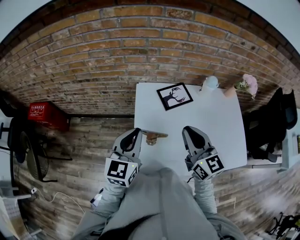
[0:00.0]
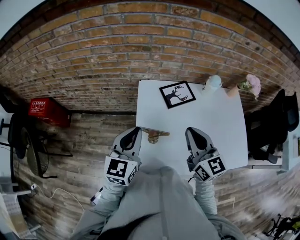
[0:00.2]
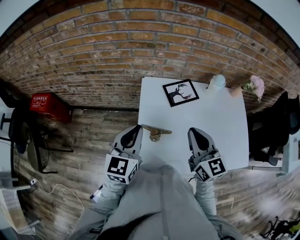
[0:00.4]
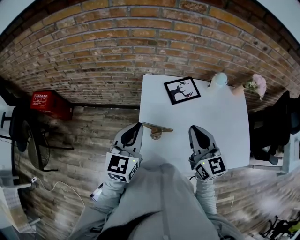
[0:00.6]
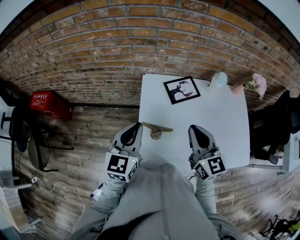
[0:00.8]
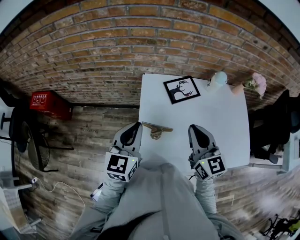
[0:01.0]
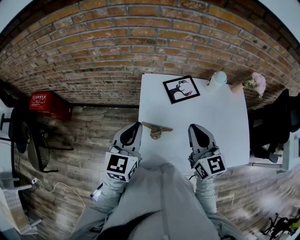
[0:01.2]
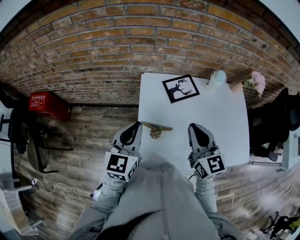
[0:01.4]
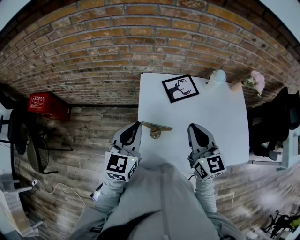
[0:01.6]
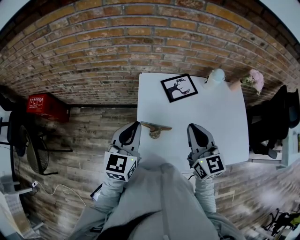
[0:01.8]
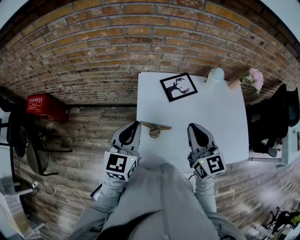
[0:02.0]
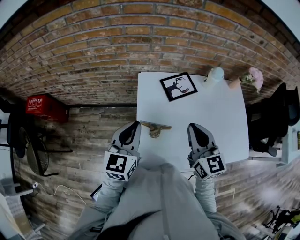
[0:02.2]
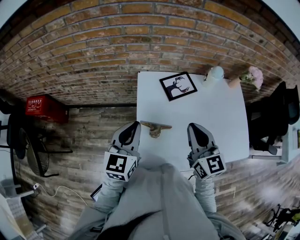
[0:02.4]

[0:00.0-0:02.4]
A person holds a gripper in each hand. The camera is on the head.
0:00.0 to 0:01.2: There are only small adjustments of the grippers.
0:01.2 to 0:02.4: Both grippers stay put.

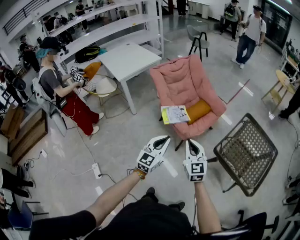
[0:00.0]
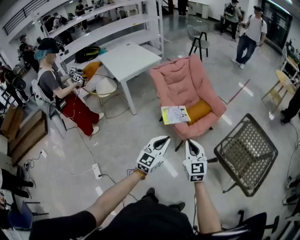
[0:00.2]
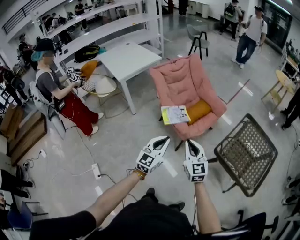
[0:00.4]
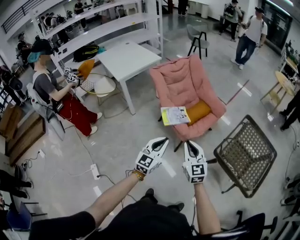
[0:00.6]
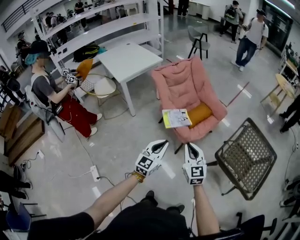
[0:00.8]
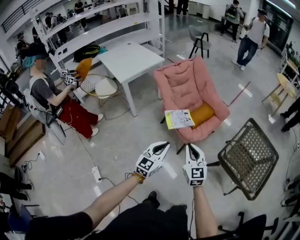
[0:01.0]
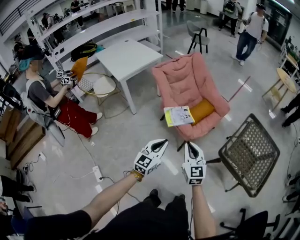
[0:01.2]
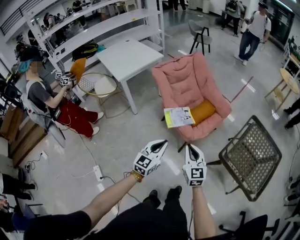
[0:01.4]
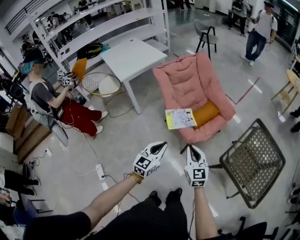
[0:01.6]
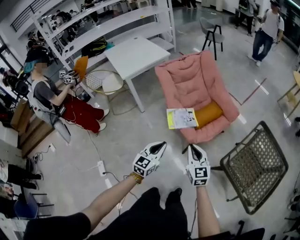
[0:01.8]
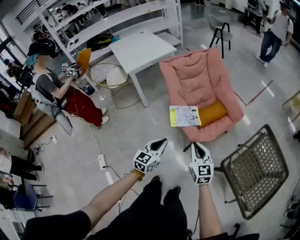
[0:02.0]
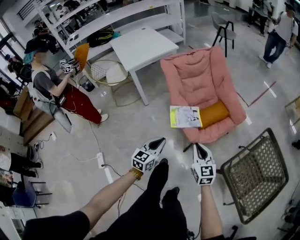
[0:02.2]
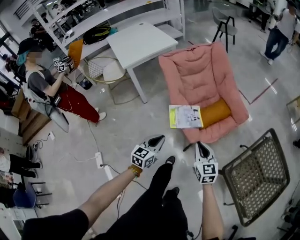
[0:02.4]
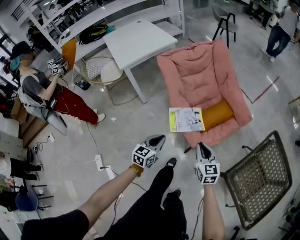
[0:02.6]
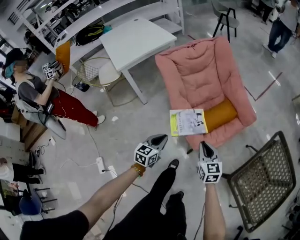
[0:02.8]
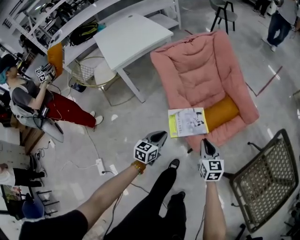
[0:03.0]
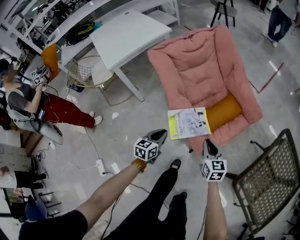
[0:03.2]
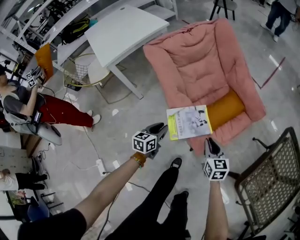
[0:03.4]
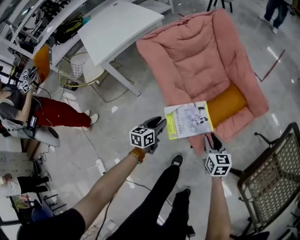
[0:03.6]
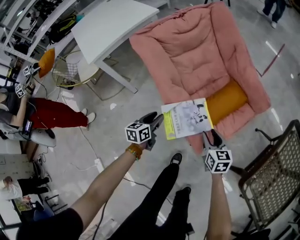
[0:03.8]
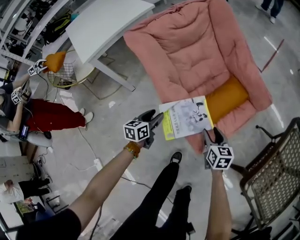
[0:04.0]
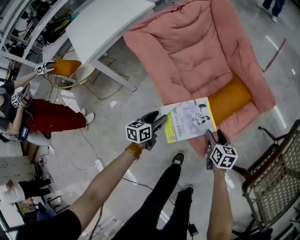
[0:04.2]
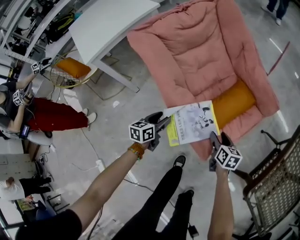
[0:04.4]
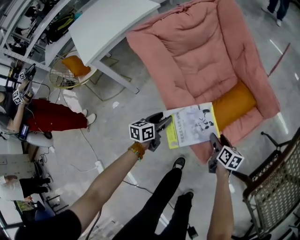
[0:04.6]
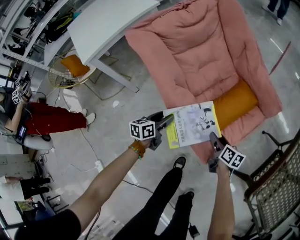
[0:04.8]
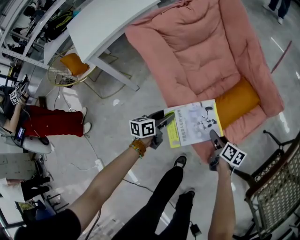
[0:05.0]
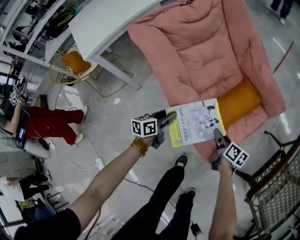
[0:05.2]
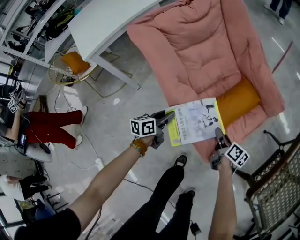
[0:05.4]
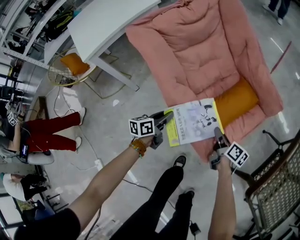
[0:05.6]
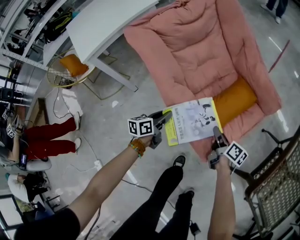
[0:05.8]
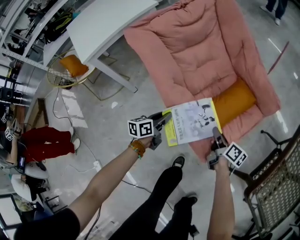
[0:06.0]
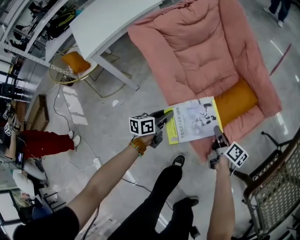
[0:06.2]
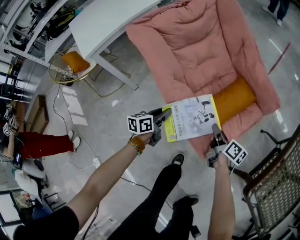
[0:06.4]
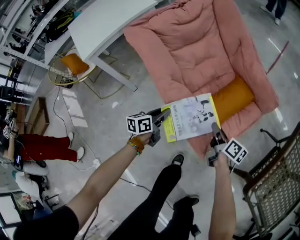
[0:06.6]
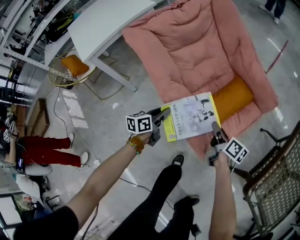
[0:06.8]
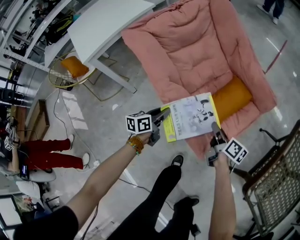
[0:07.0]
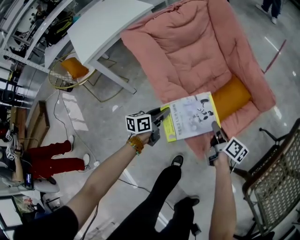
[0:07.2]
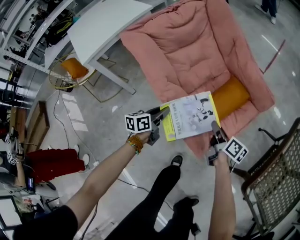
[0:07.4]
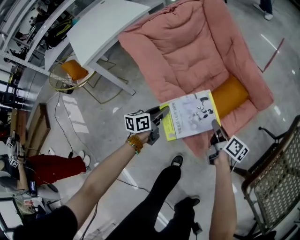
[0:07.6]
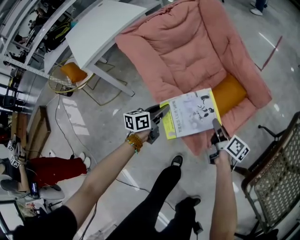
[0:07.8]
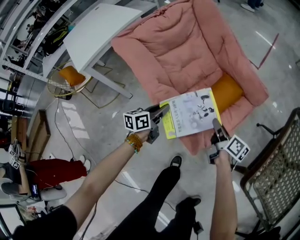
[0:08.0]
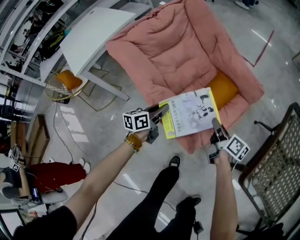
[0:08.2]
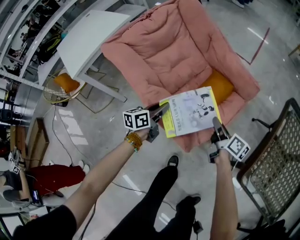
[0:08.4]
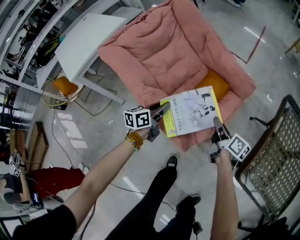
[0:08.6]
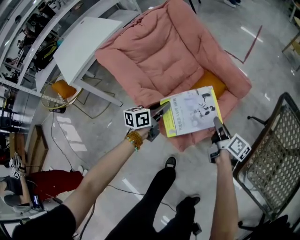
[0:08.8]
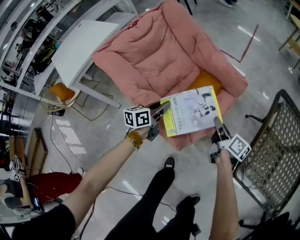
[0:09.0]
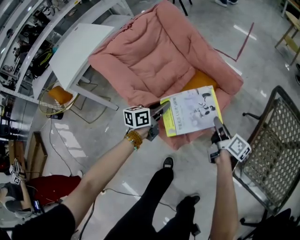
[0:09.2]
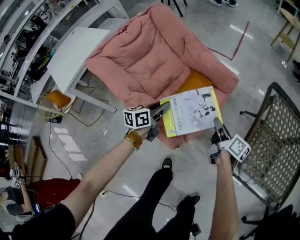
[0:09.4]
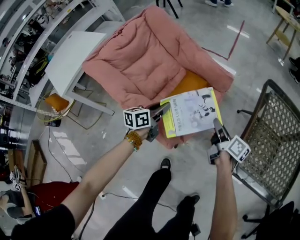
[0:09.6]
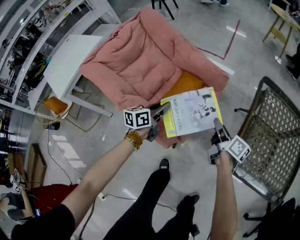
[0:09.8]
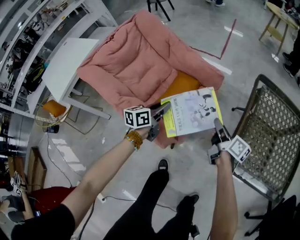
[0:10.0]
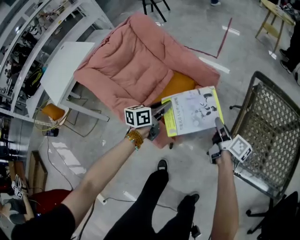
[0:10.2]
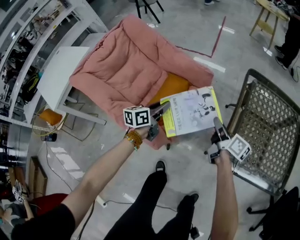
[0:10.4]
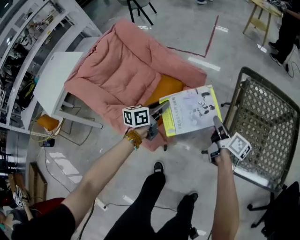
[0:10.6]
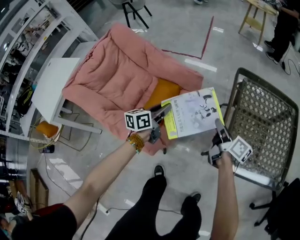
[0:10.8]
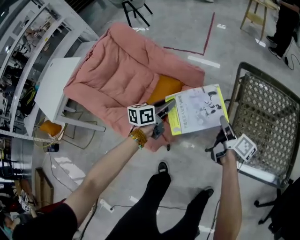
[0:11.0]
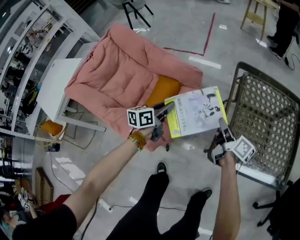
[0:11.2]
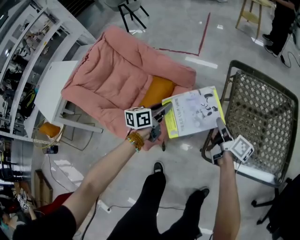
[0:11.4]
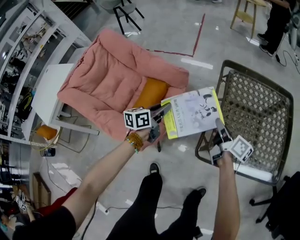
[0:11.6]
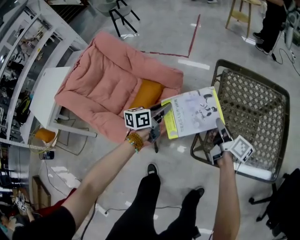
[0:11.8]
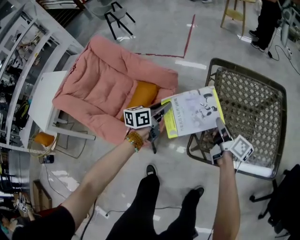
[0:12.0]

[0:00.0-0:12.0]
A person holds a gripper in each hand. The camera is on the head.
0:00.0 to 0:01.6: Both grippers travel together forward and downward, about 10 cm.
0:01.6 to 0:03.0: Both grippers travel together forward and downward, roughly 35 cm. The left gripper changes its angle by some 20 degrees.
0:03.0 to 0:04.4: Both grippers travel together downward and forward, some 25 cm. The left gripper opens; the right gripper swivels approximately 30 degrees, and opens up.
0:04.4 to 0:06.0: The right gripper rotates approximately 30 degrees, and closes up. Meanwhile the left gripper closes up.
0:06.0 to 0:07.6: The right gripper moves approximately 5 cm.
0:07.6 to 0:09.0: The grippers both shift to the right and upward by about 15 cm.
0:09.0 to 0:10.4: The right gripper is displaced to the right and upward by about 15 cm. Meanwhile the left gripper heads to the right, covering approximately 15 cm.
0:10.4 to 0:12.0: The grippers both shift to the right by about 25 cm.

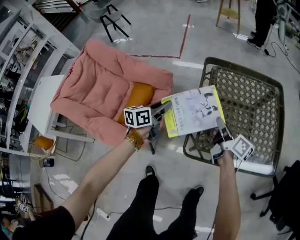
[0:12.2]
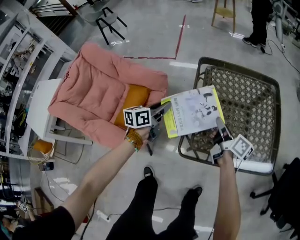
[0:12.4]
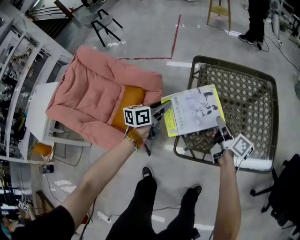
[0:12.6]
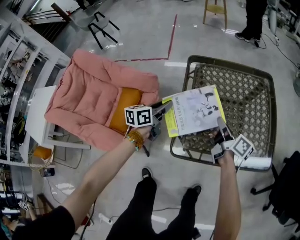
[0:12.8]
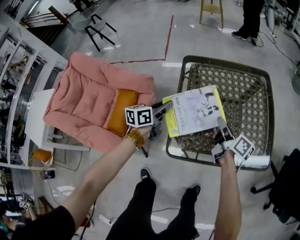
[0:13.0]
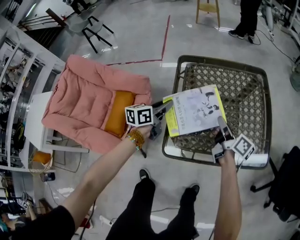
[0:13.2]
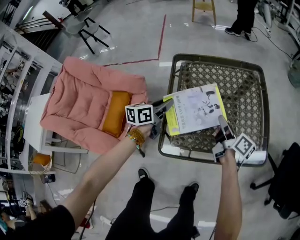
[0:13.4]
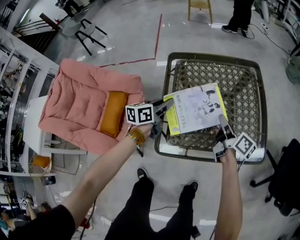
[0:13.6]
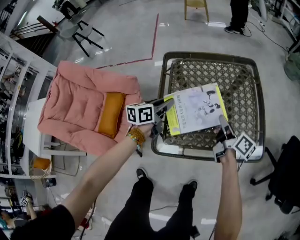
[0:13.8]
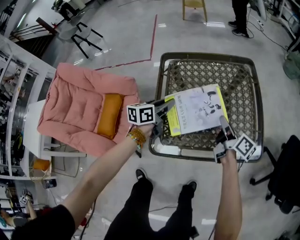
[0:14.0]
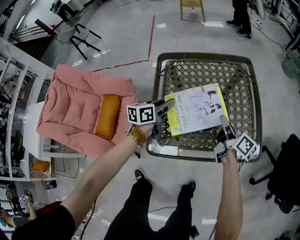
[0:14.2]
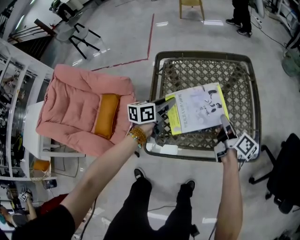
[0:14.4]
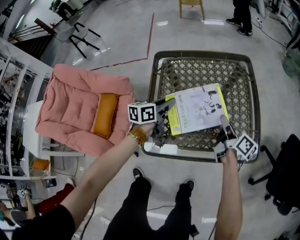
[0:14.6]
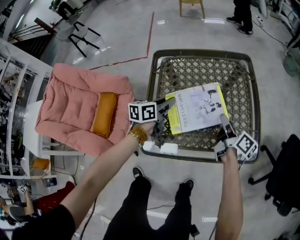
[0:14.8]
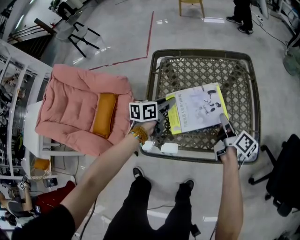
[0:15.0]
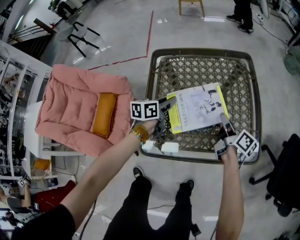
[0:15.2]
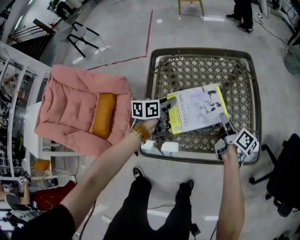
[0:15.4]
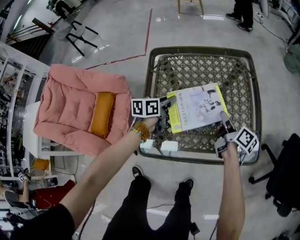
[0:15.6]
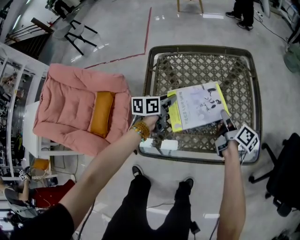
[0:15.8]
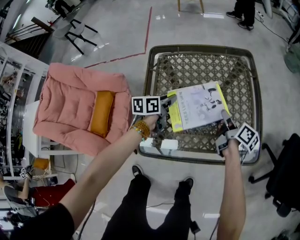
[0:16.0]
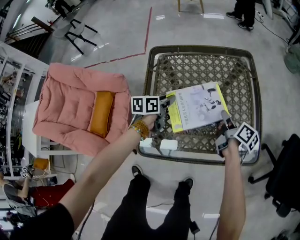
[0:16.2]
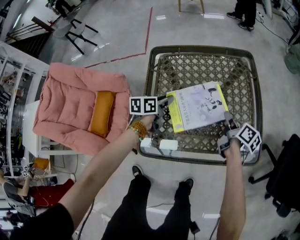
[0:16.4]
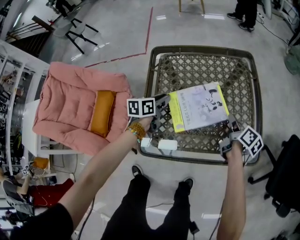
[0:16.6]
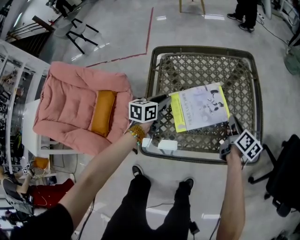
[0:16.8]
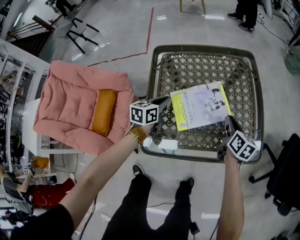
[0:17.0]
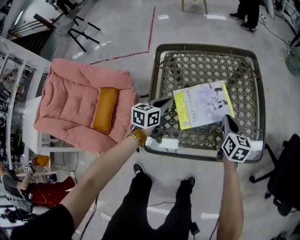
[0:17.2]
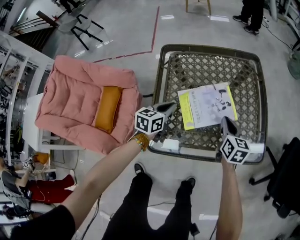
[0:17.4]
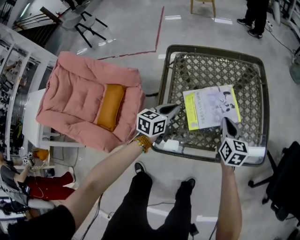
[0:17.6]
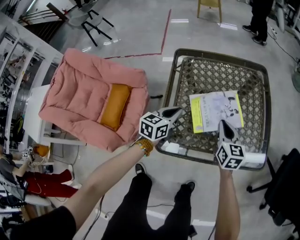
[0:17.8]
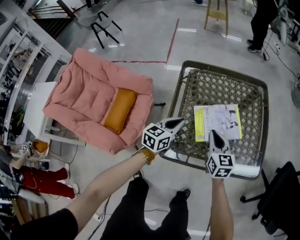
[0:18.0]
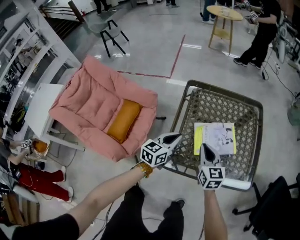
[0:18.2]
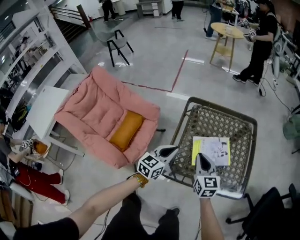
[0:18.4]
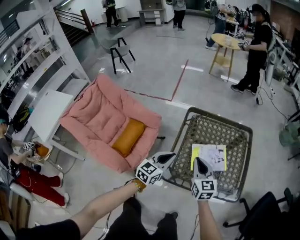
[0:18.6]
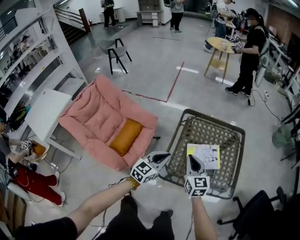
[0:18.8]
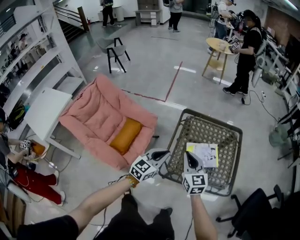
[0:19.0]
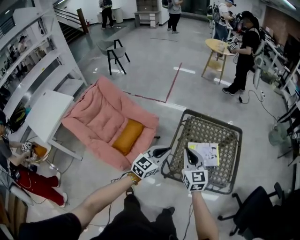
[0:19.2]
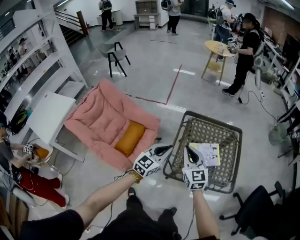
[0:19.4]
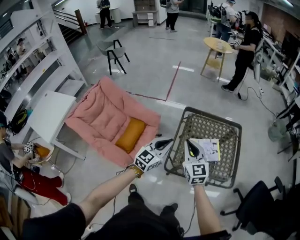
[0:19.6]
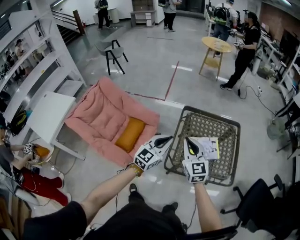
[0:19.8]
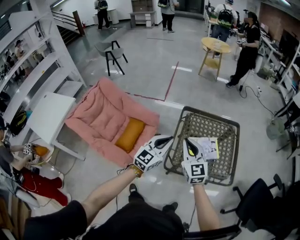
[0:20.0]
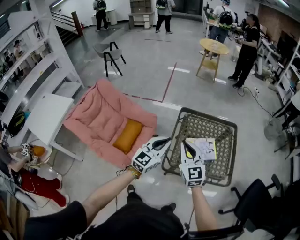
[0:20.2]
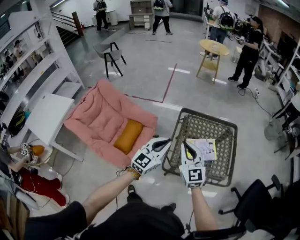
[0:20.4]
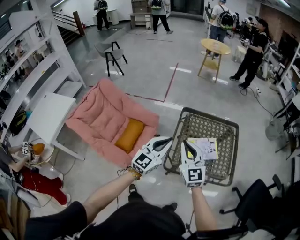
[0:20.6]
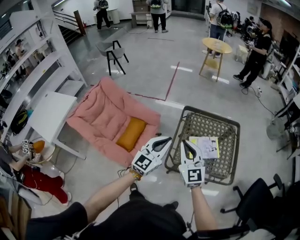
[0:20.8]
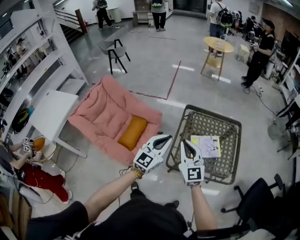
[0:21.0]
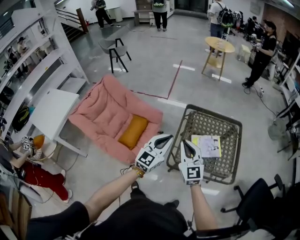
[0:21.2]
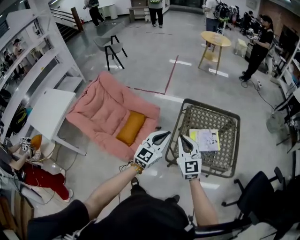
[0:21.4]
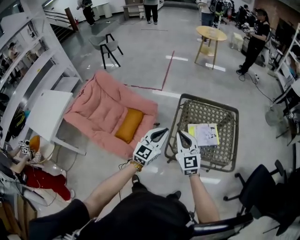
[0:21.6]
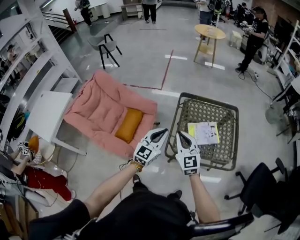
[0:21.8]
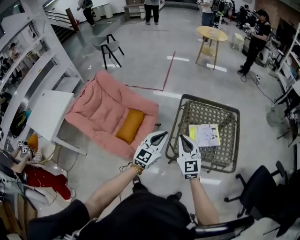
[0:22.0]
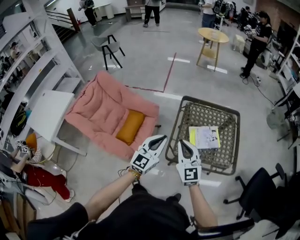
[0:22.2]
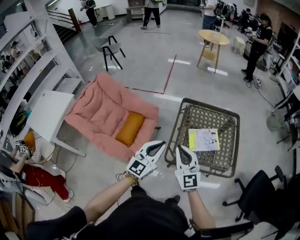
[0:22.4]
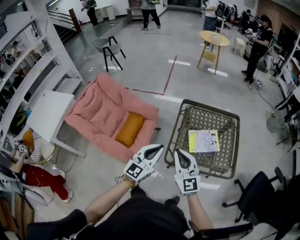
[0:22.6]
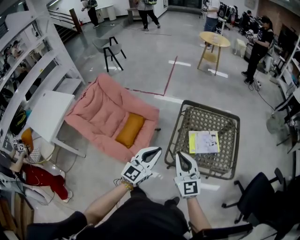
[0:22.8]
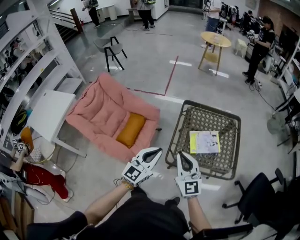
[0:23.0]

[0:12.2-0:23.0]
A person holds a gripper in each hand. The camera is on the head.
0:12.2 to 0:13.8: The two grippers go about 20 cm to the right.
0:13.8 to 0:15.2: The right gripper moves to the right and downward, roughly 10 cm. The left gripper travels downward and to the right by about 10 cm.
0:15.2 to 0:16.8: The right gripper swivels some 20 degrees.
0:16.8 to 0:18.4: The right gripper is displaced to the left, upward and backward by approximately 35 cm, and twists approximately 50 degrees counterclockwise, seen from behind; the left gripper heads upward and backward, covering some 25 cm, rotates some 20 degrees, and closes its fingers.
0:18.4 to 0:20.0: The two grippers go about 25 cm upward. The left gripper turns by some 20 degrees.
0:20.0 to 0:21.4: The right gripper shifts by approximately 5 cm.
0:21.4 to 0:23.0: Both grippers travel together backward, some 5 cm.
